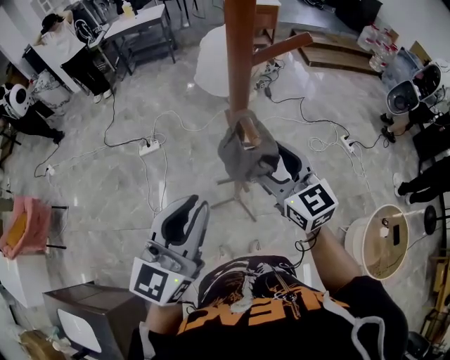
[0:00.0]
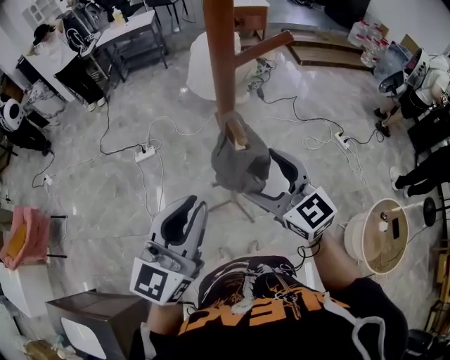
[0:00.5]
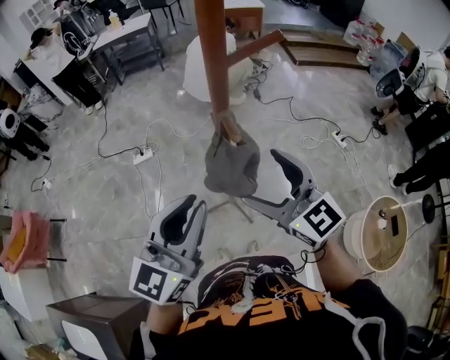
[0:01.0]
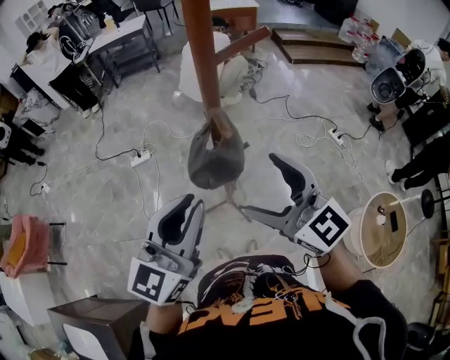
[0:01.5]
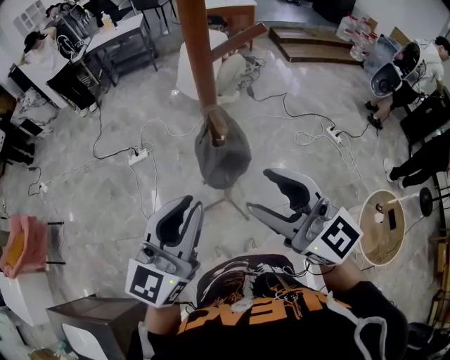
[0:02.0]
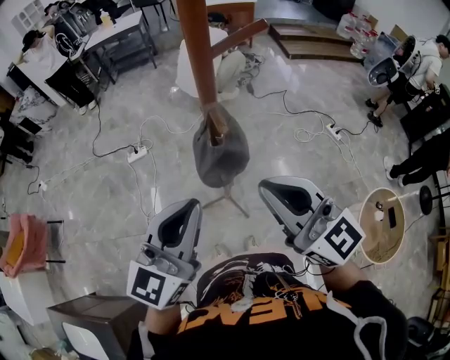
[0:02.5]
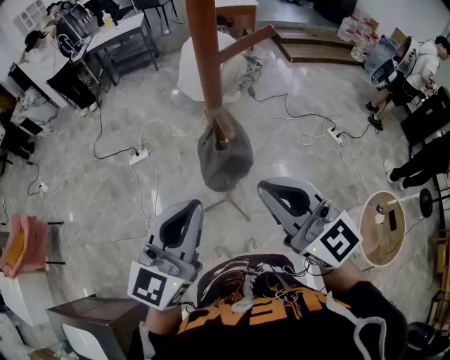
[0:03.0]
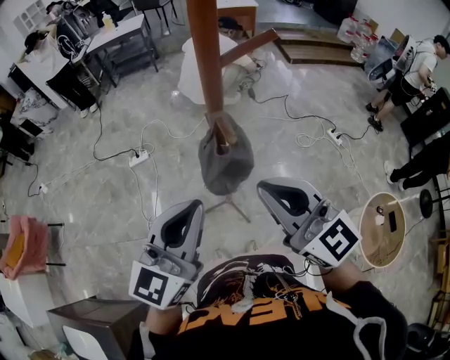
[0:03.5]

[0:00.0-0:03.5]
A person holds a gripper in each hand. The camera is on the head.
0:00.0 to 0:02.0: The right gripper moves backward and upward, roughly 15 cm.
0:02.0 to 0:03.5: The right gripper closes its fingers.

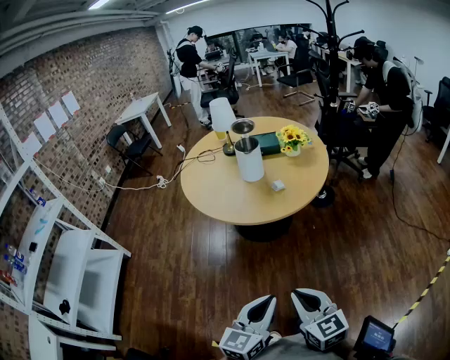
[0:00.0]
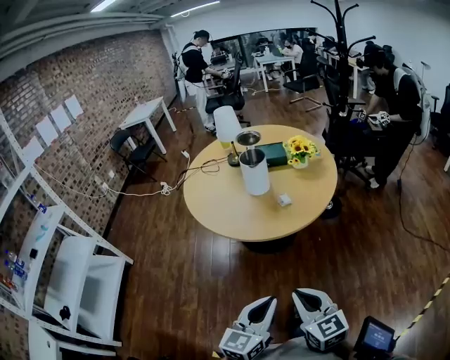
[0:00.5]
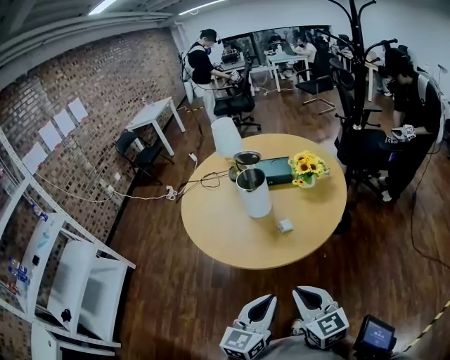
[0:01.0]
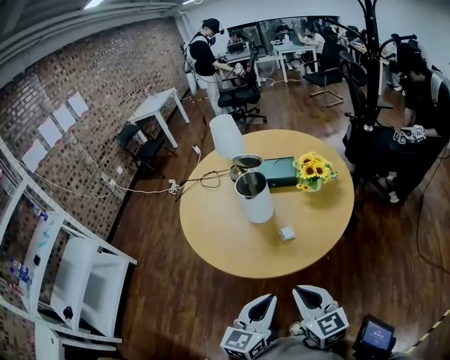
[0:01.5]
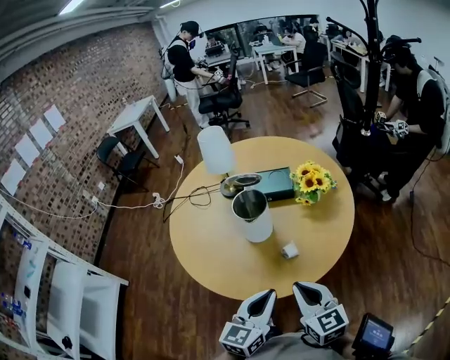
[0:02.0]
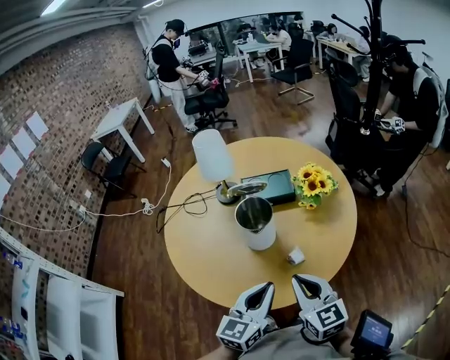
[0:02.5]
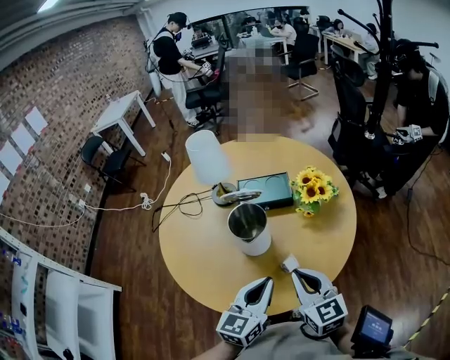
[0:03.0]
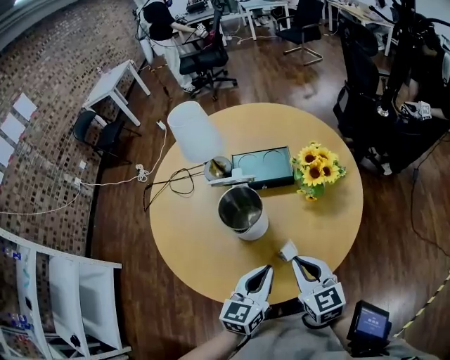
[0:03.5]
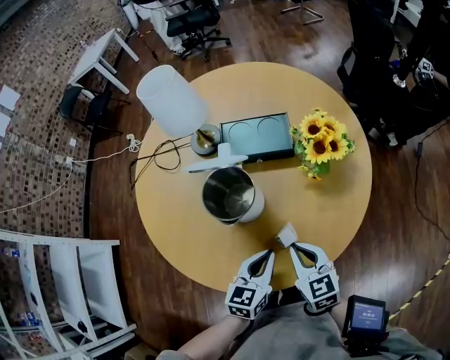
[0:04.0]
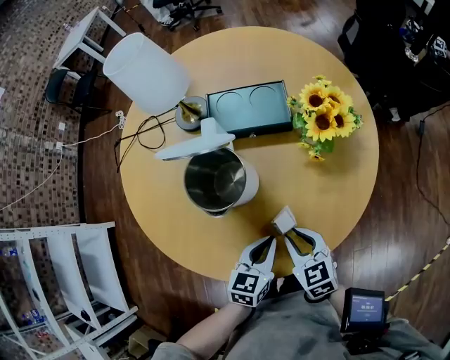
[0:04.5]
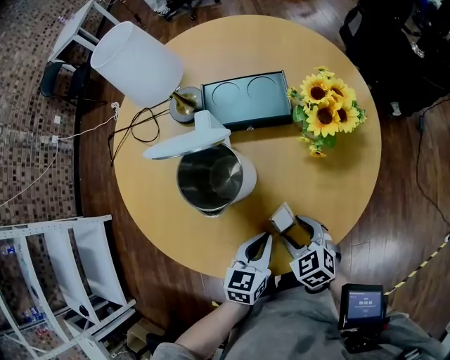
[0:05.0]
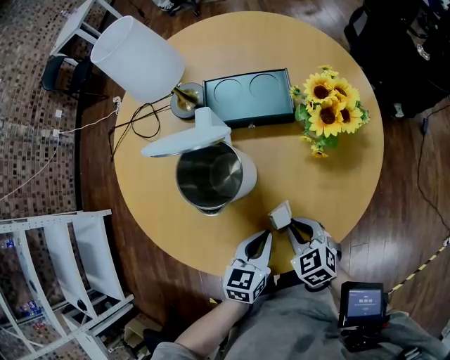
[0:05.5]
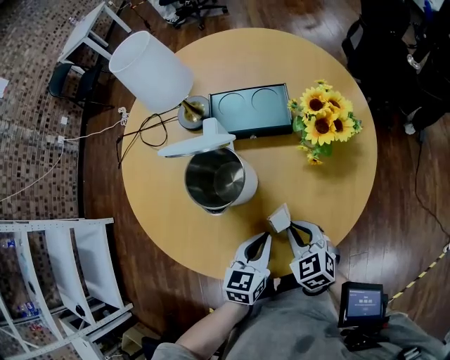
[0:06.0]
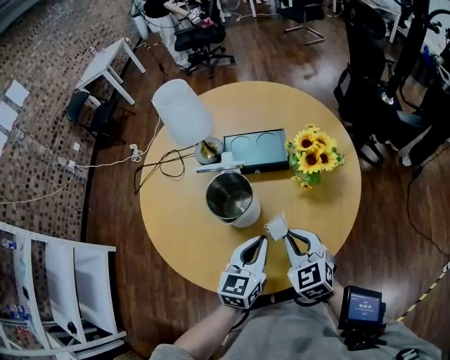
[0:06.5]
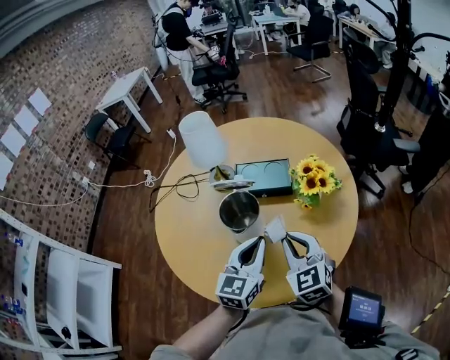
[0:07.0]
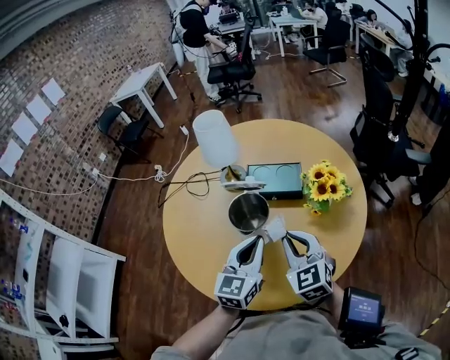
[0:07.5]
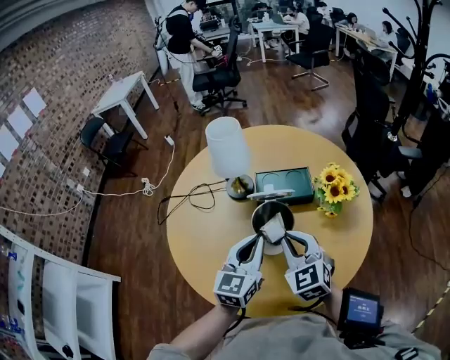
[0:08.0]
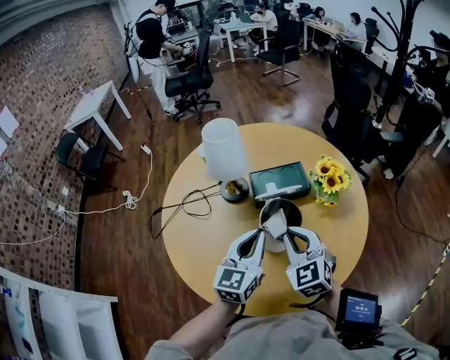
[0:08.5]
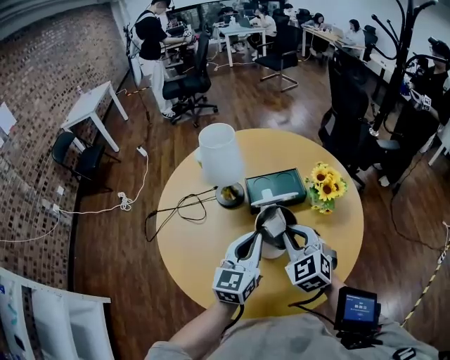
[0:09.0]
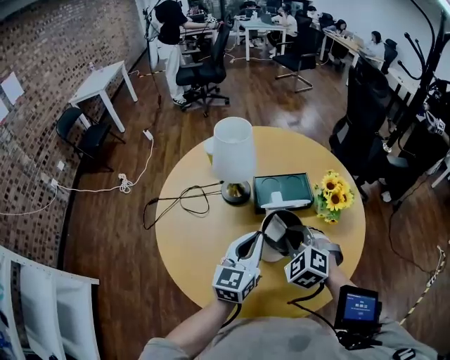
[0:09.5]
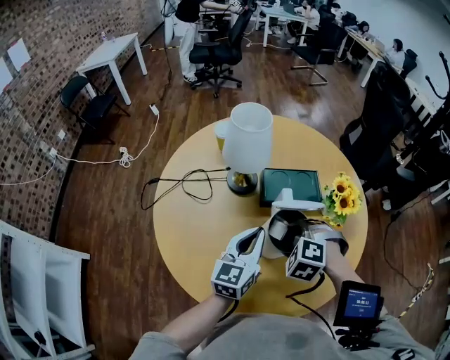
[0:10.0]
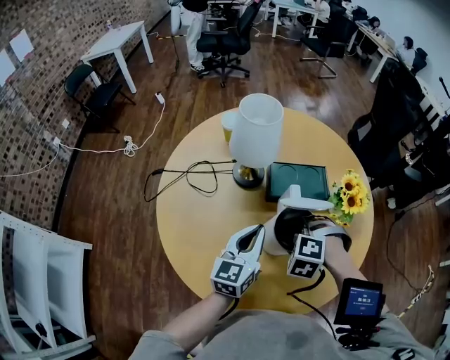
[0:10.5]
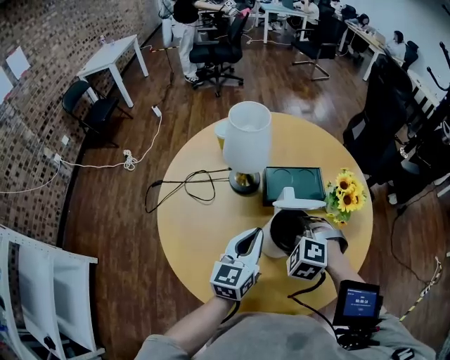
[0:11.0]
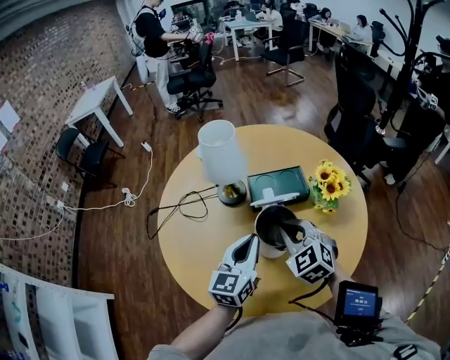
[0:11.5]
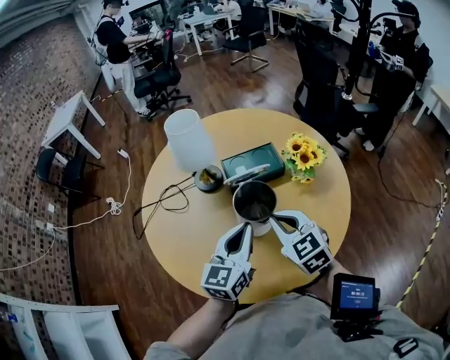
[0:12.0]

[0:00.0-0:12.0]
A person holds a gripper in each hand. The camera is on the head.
0:00.0 to 0:02.0: Both grippers are carried forward, roughly 40 cm.
0:02.0 to 0:04.0: The two grippers go some 25 cm forward and downward.
0:04.0 to 0:06.0: The left gripper shifts by roughly 5 cm, while the right gripper is displaced downward by some 10 cm, and opens, then closes once more.
0:06.0 to 0:08.0: The left gripper moves upward, to the left and forward, about 25 cm, and rotates some 30 degrees, while the right gripper is displaced upward and to the left by approximately 25 cm, and changes its angle by some 30 degrees.
0:08.0 to 0:10.0: The right gripper shifts about 10 cm downward and forward, and tips its fingers downward by approximately 40 degrees; the left gripper travels to the left by roughly 5 cm.
0:10.0 to 0:12.0: The left gripper is displaced backward and to the right by some 10 cm. The right gripper is displaced backward and upward by some 10 cm, and twists roughly 50 degrees clockwise, seen from behind.

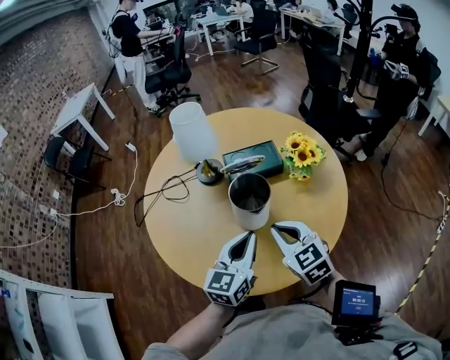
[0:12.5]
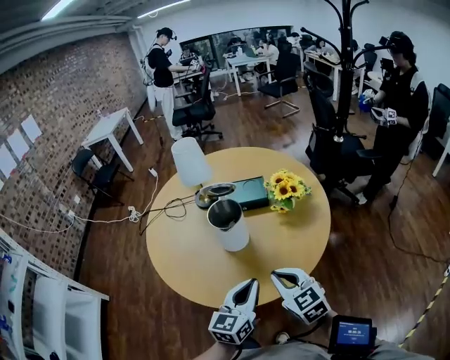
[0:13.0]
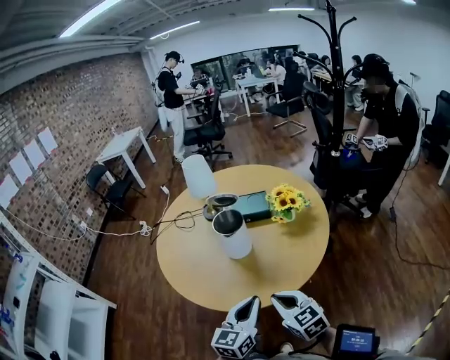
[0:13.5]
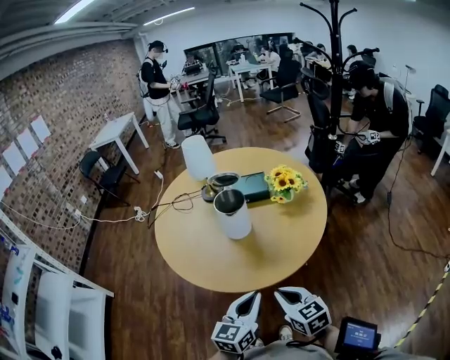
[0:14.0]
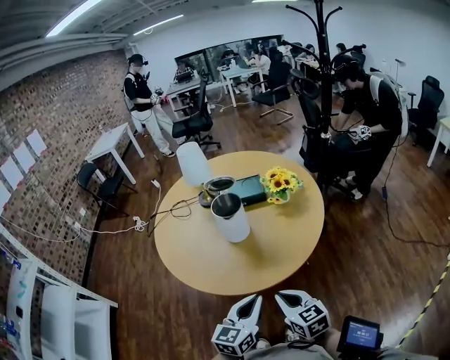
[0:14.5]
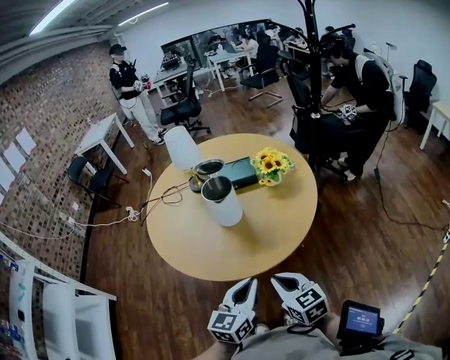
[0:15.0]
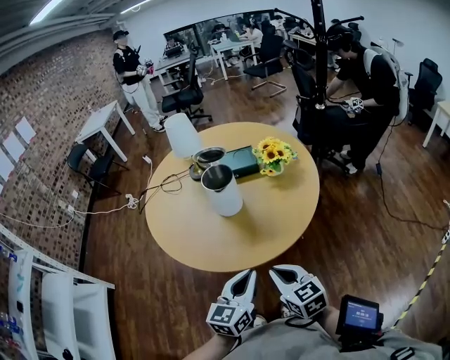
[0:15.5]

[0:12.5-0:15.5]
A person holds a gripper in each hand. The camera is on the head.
0:12.5 to 0:14.0: Both grippers travel together backward, roughly 25 cm.
0:14.0 to 0:15.5: Neither gripper changes place.

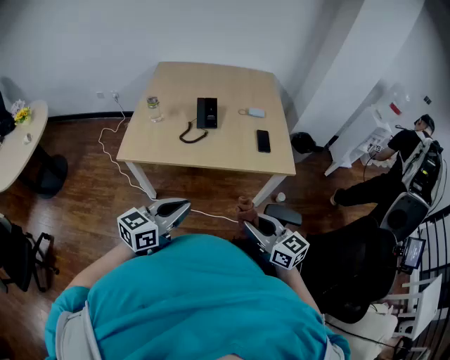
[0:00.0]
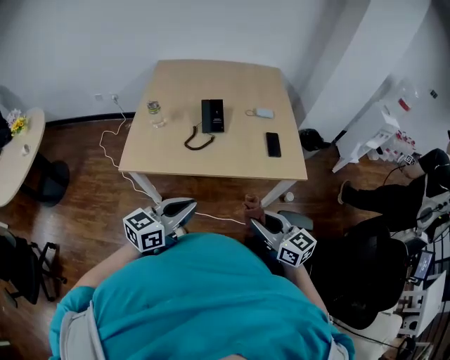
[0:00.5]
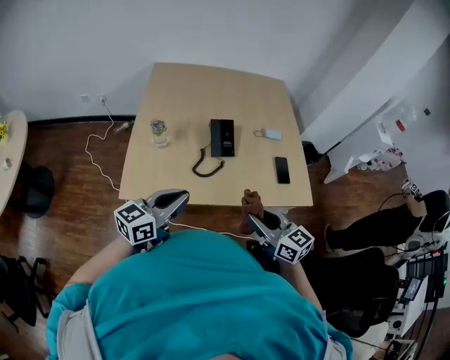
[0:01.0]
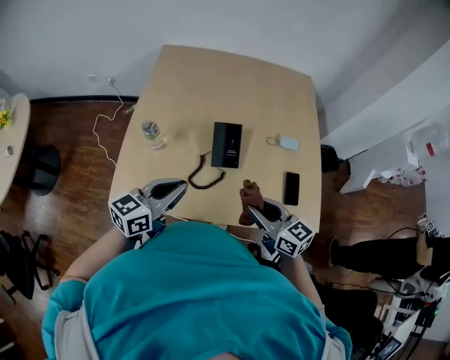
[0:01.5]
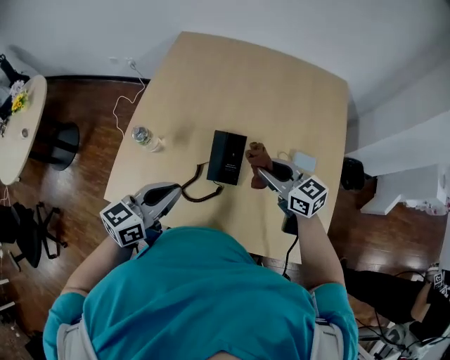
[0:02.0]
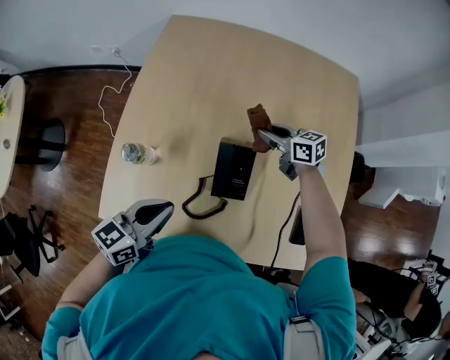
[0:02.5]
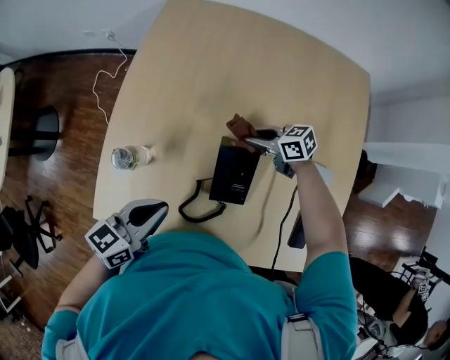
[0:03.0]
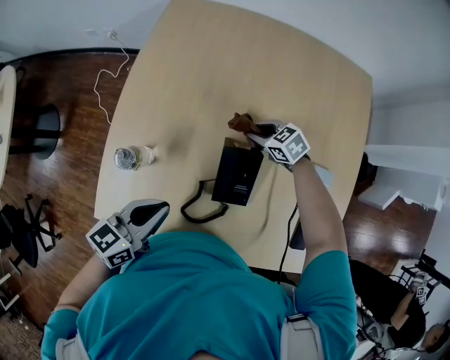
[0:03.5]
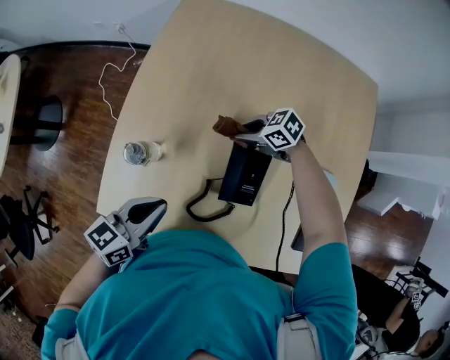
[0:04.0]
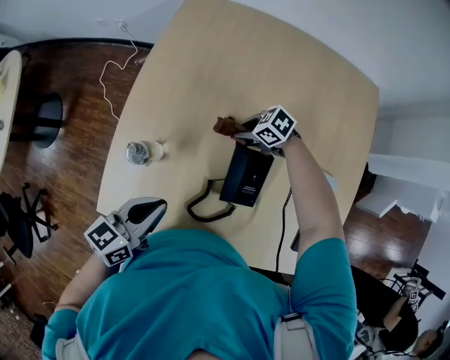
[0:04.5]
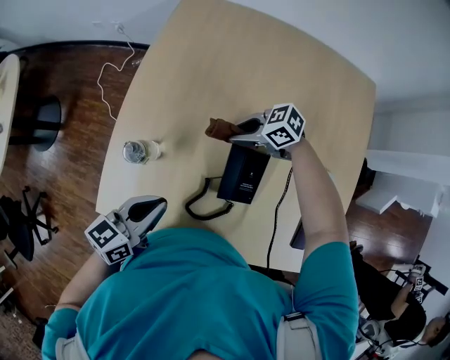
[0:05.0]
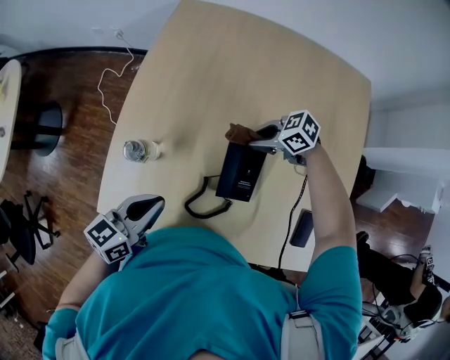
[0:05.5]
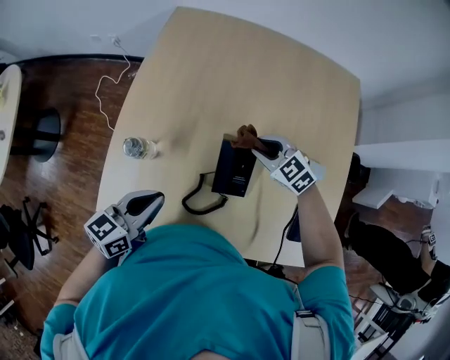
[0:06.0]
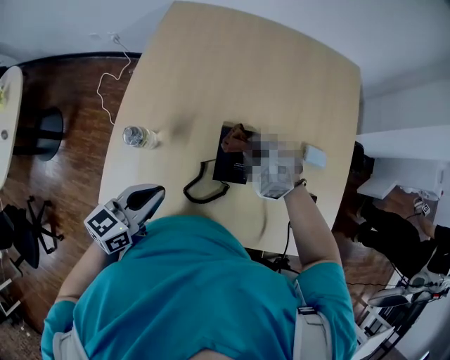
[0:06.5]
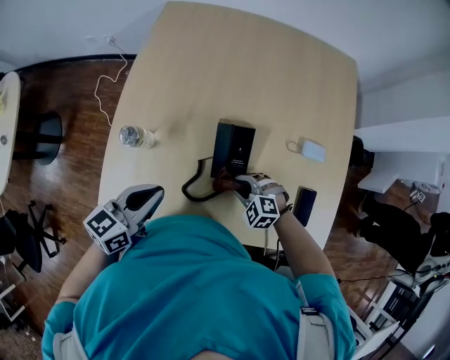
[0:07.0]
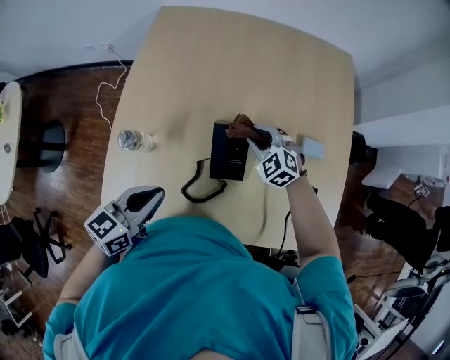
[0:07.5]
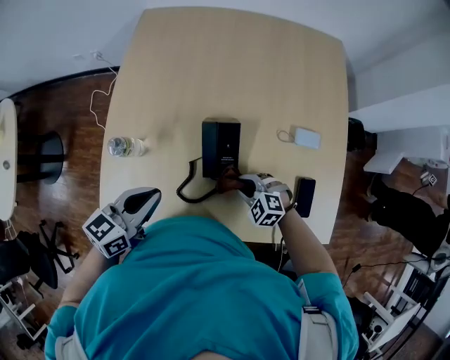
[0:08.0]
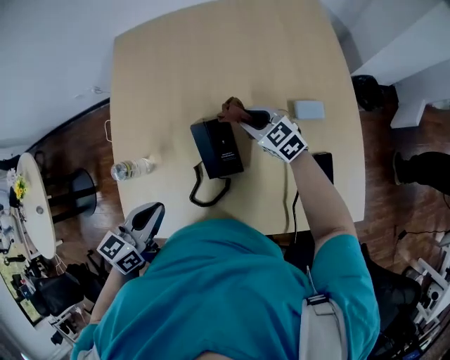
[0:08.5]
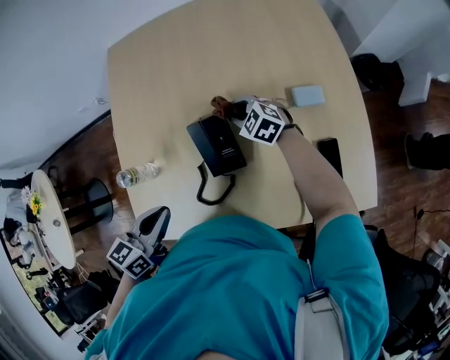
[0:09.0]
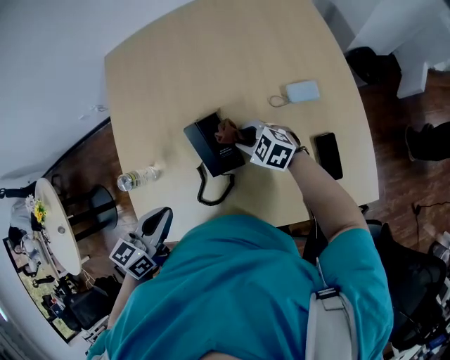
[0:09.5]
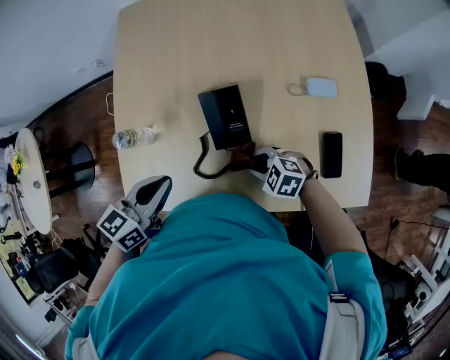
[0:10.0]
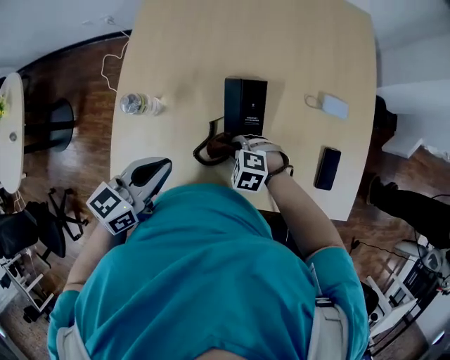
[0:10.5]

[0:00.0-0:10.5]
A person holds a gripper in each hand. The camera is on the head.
0:00.0 to 0:02.0: Both grippers are carried forward, roughly 50 cm. The right gripper rotates approximately 20 degrees.
0:02.0 to 0:04.0: The right gripper moves roughly 30 cm, and rotates about 40 degrees. Meanwhile the left gripper moves approximately 15 cm.
0:04.0 to 0:06.5: The right gripper swings up and down, about 10 cm each way, with 2 reversals, and swivels roughly 60 degrees.
0:06.5 to 0:08.5: The right gripper goes forward and backward, approximately 20 cm each way, reversing 3 times, and rolls clockwise, seen from behind, by about 40 degrees.
0:08.5 to 0:10.5: The right gripper ends up some 25 cm from where it was, and tilts its fingers some 40 degrees downward.
